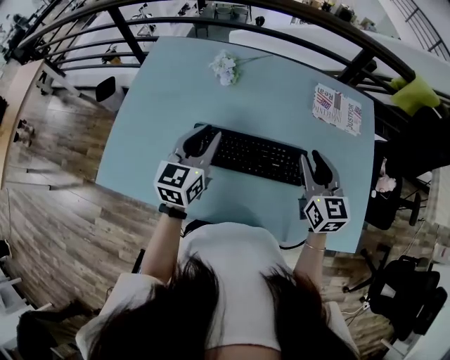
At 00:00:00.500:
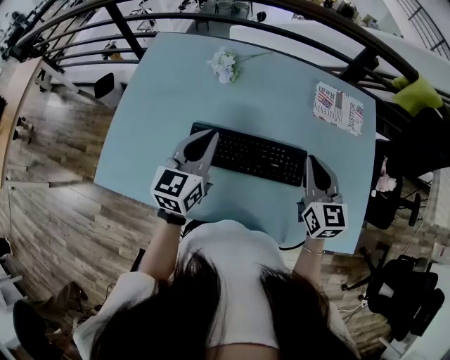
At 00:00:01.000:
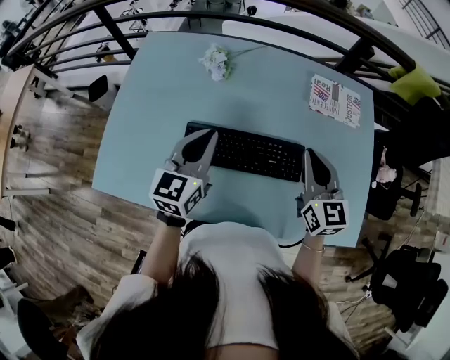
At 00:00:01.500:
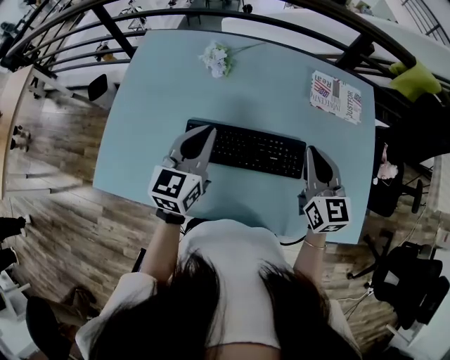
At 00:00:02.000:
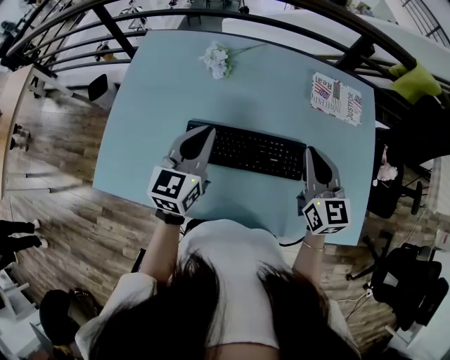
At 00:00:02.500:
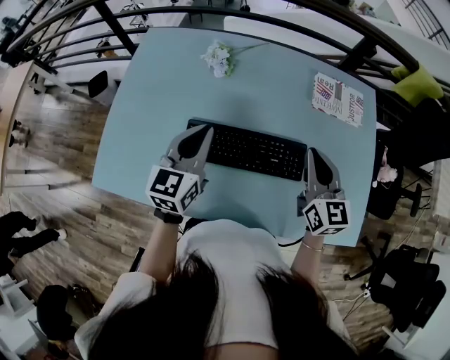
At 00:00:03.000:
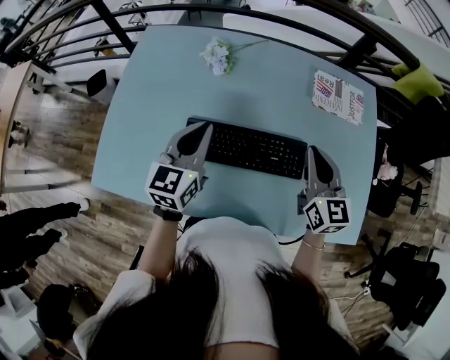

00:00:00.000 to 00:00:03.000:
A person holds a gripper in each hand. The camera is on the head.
00:00:00.000 to 00:00:01.500: The right gripper closes its fingers.
00:00:01.500 to 00:00:03.000: There are only small adjustments of the grippers.

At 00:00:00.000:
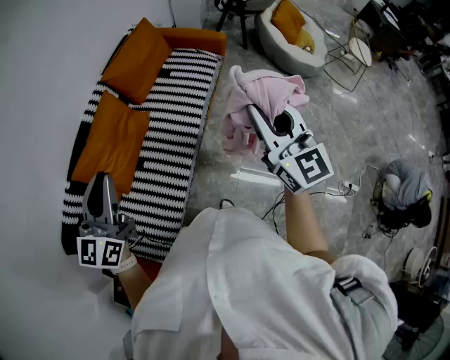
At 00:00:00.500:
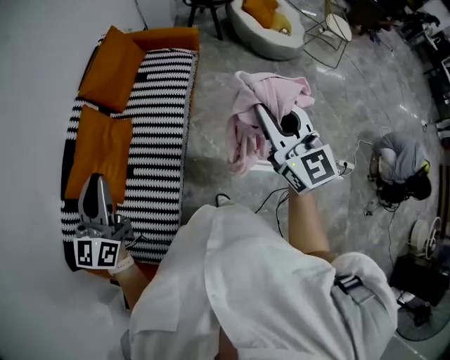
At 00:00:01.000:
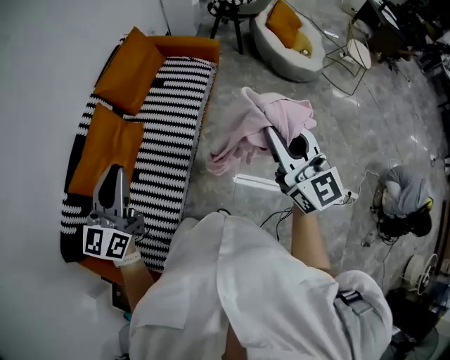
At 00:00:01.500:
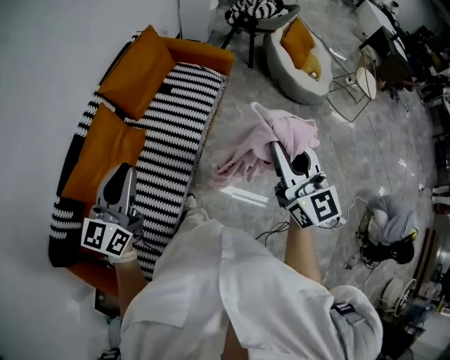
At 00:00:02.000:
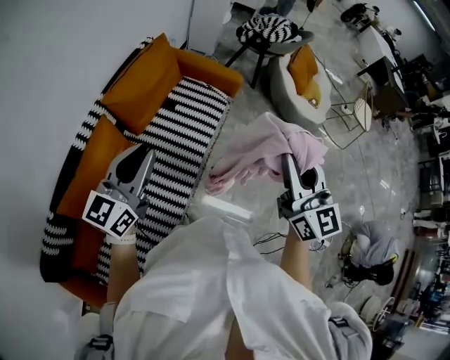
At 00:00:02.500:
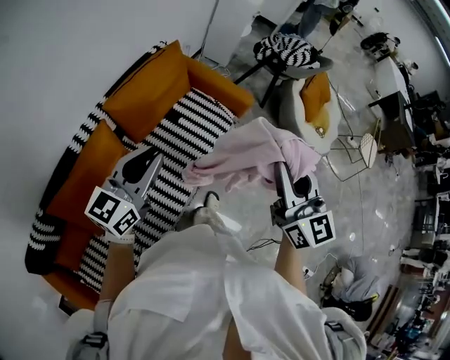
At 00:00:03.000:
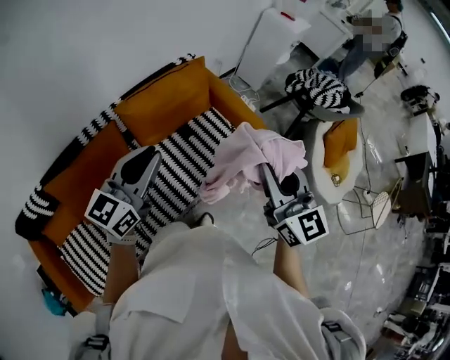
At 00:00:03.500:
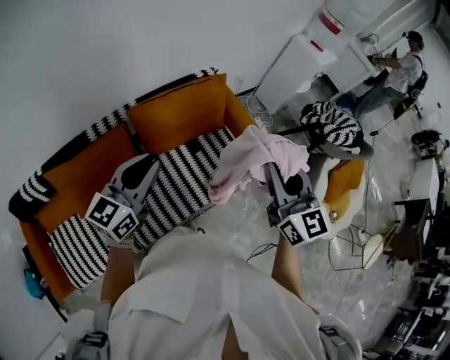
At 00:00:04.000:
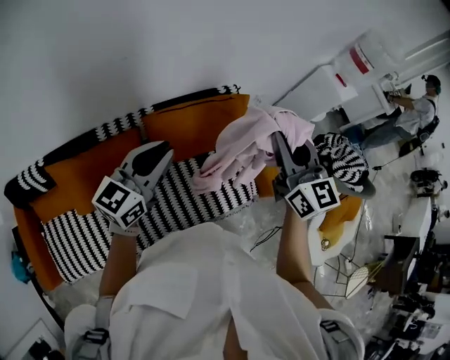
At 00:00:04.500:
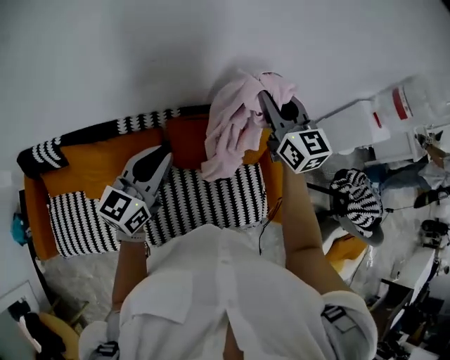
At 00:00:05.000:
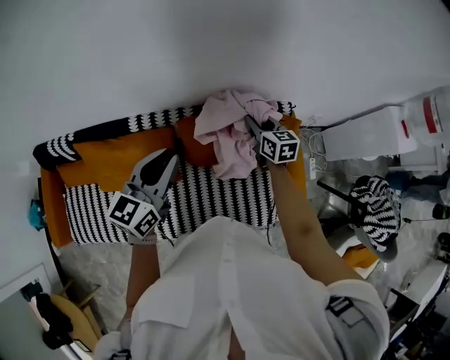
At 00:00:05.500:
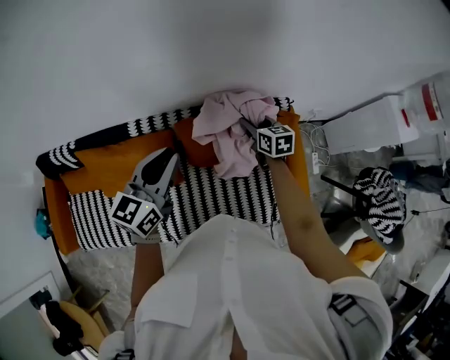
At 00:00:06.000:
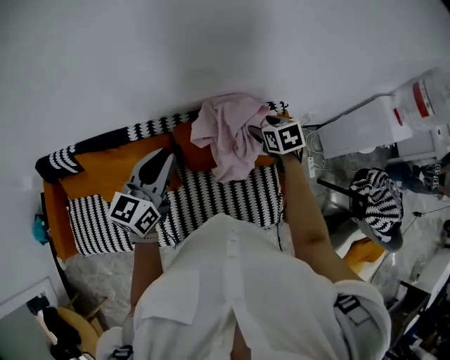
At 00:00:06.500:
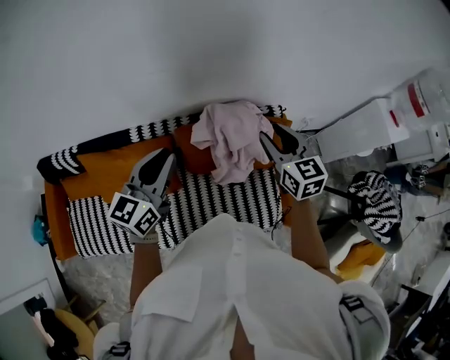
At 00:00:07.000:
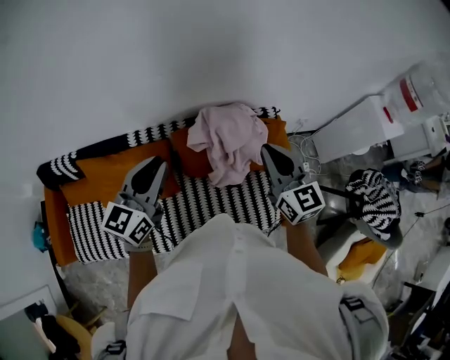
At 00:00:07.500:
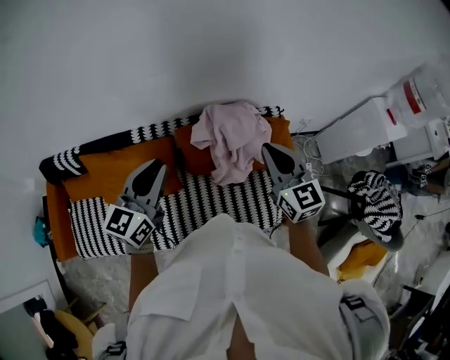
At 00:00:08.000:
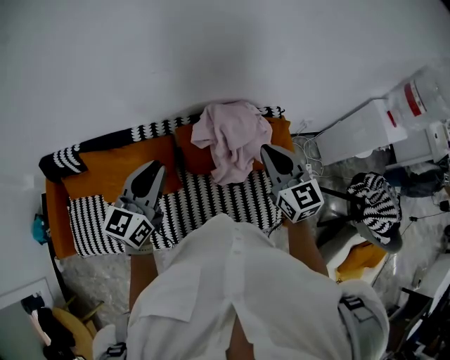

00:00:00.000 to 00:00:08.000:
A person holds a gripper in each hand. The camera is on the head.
00:00:00.000 to 00:00:02.000: Both grippers move forward, some 25 cm.
00:00:02.000 to 00:00:04.000: The right gripper ends up some 50 cm from where it was, and turns by about 50 degrees. The left gripper moves approximately 25 cm, and swivels roughly 30 degrees.
00:00:04.000 to 00:00:06.000: The right gripper is displaced downward and forward by some 35 cm, angles its fingers downward, by approximately 50 degrees, and opens its fingers. The left gripper shifts roughly 10 cm forward, and rotates about 30 degrees.
00:00:06.000 to 00:00:08.000: The left gripper moves backward, some 5 cm. The right gripper moves upward and backward, roughly 20 cm, tilts its fingers approximately 40 degrees upward, and closes up.

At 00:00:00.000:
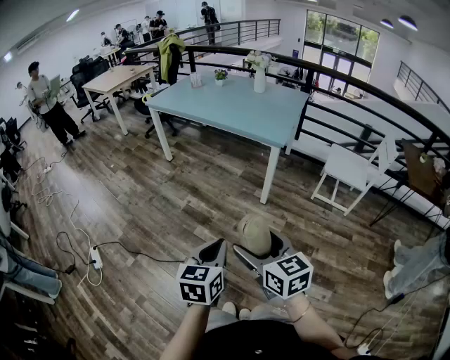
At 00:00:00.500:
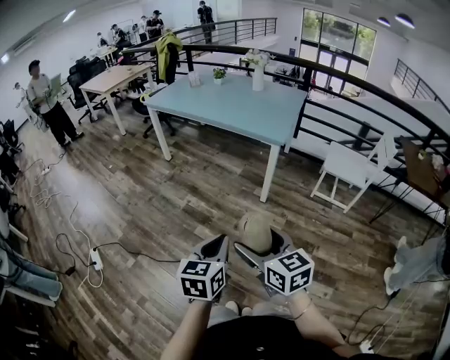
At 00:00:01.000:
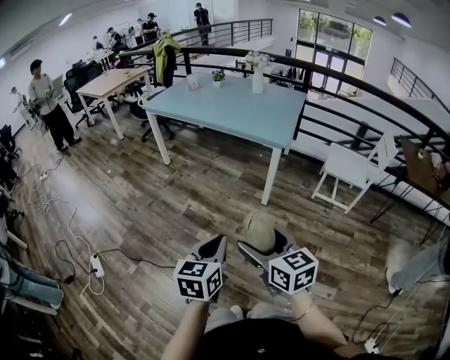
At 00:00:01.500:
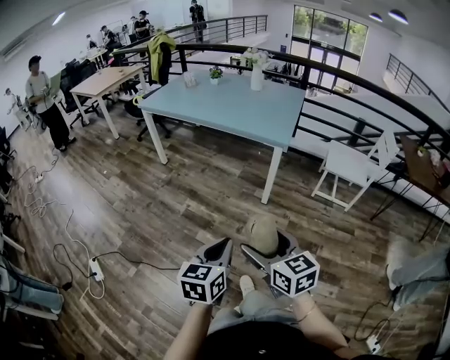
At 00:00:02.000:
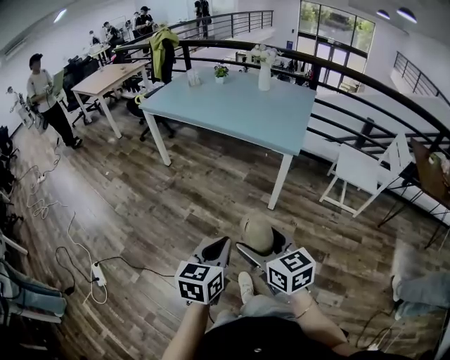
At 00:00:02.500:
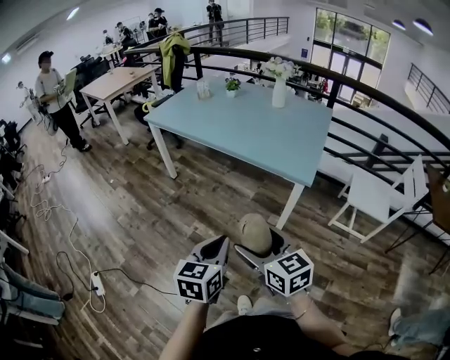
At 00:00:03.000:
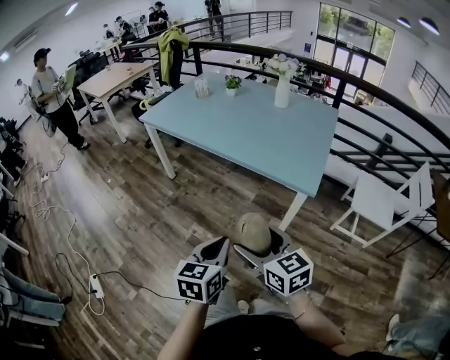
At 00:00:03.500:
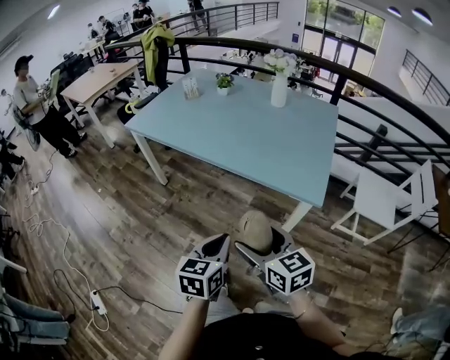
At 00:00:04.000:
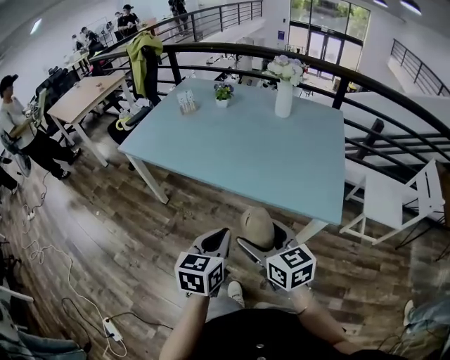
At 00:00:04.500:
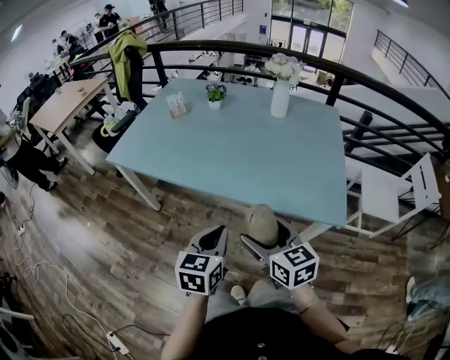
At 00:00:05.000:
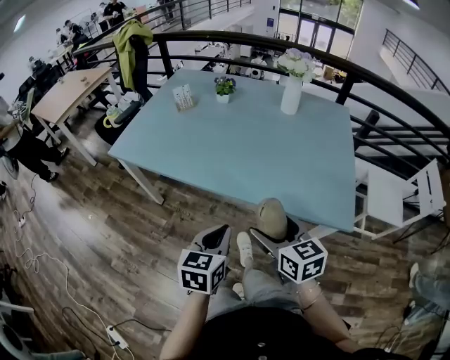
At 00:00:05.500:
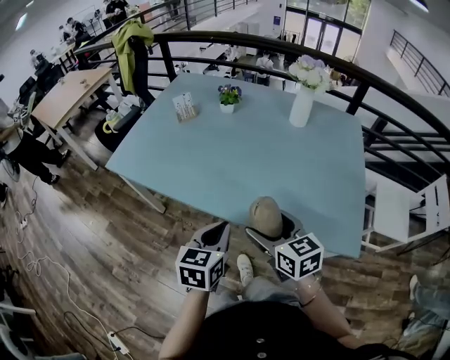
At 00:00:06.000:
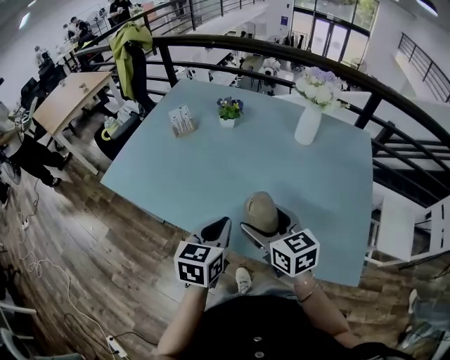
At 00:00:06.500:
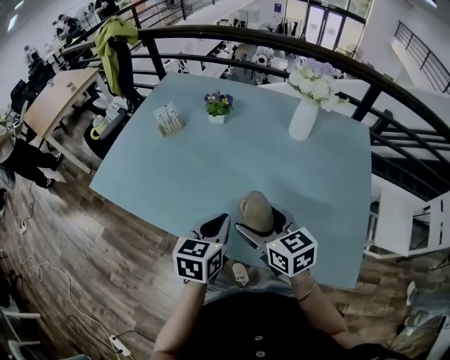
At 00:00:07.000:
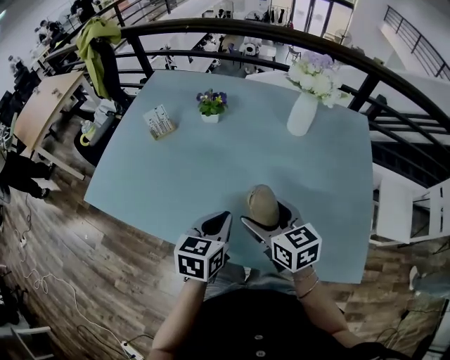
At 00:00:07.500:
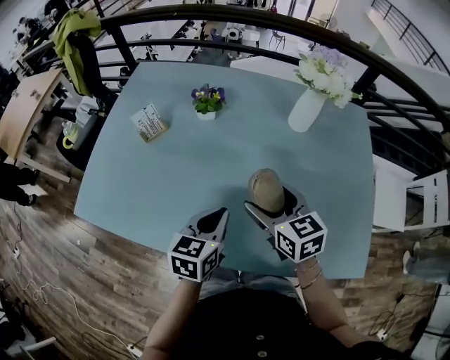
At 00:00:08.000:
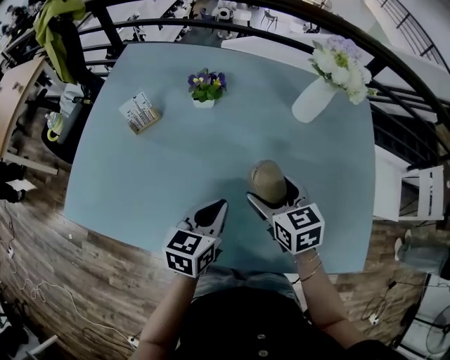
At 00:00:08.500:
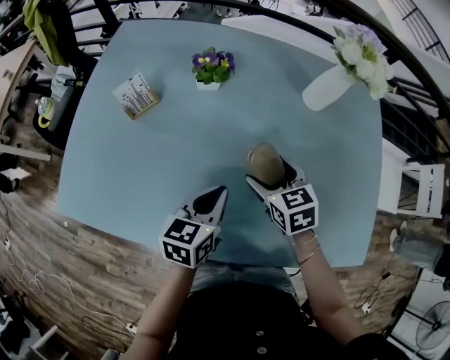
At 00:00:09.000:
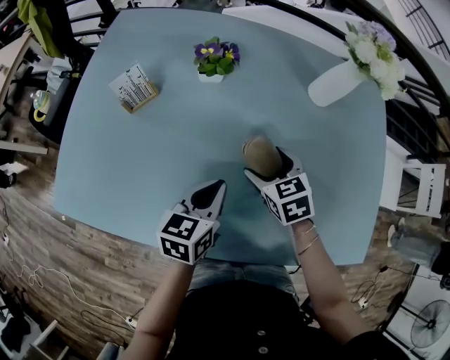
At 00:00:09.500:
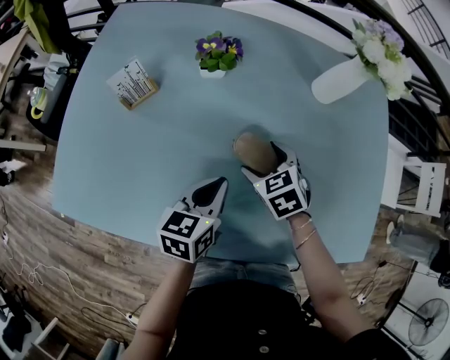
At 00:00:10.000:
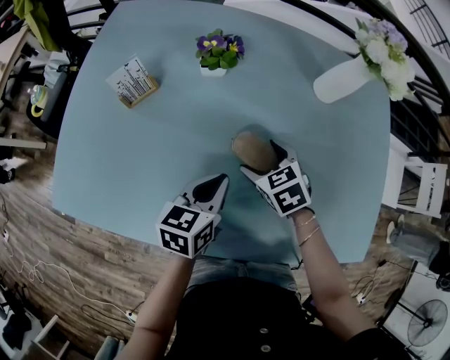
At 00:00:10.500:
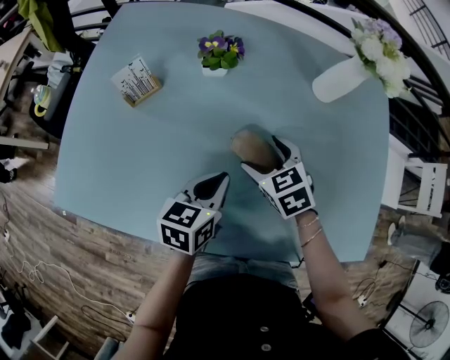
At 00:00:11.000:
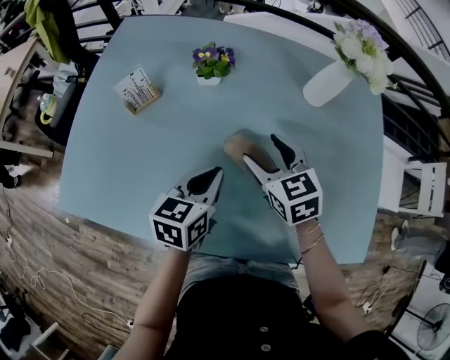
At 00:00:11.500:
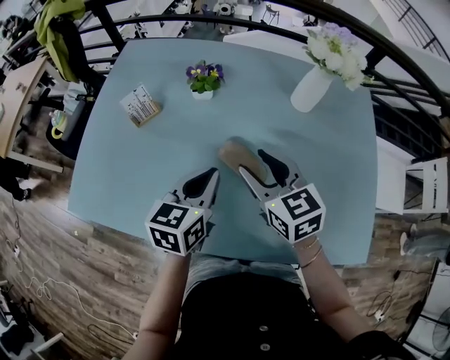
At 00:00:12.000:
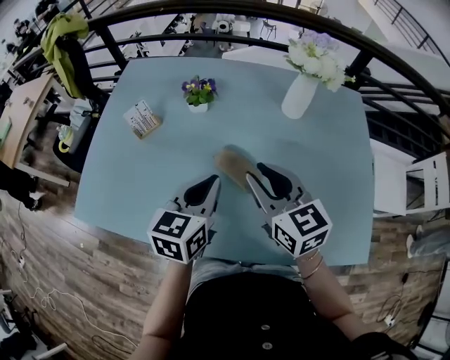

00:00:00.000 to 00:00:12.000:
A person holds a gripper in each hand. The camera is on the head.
00:00:00.000 to 00:00:02.000: The left gripper is displaced forward by approximately 15 cm. Meanwhile the right gripper heads forward and to the left, covering about 15 cm.
00:00:02.000 to 00:00:04.000: The two grippers travel together, forward, roughly 50 cm.
00:00:04.000 to 00:00:06.000: The two grippers go some 30 cm forward.
00:00:06.000 to 00:00:08.000: The left gripper moves forward and downward, roughly 15 cm; the right gripper travels forward by roughly 15 cm, and turns by roughly 20 degrees.
00:00:08.000 to 00:00:10.000: The left gripper moves approximately 5 cm. The right gripper shifts about 10 cm downward and to the left, and changes its angle by approximately 20 degrees.
00:00:10.000 to 00:00:12.000: The right gripper travels upward by some 20 cm, tips its fingers upward by roughly 40 degrees, and closes its fingers, while the left gripper travels upward by approximately 15 cm.

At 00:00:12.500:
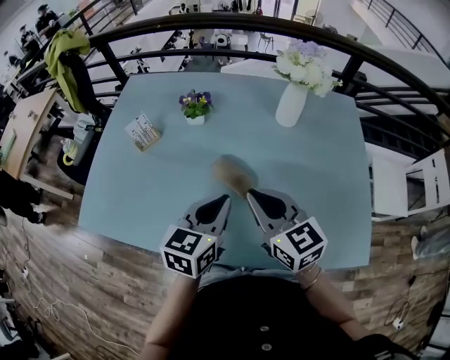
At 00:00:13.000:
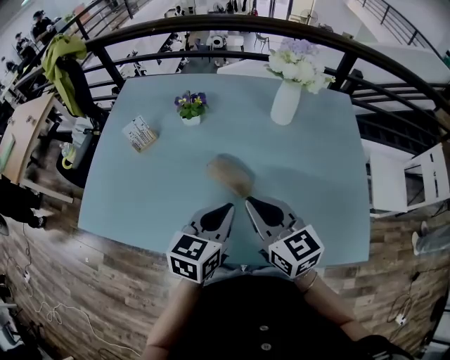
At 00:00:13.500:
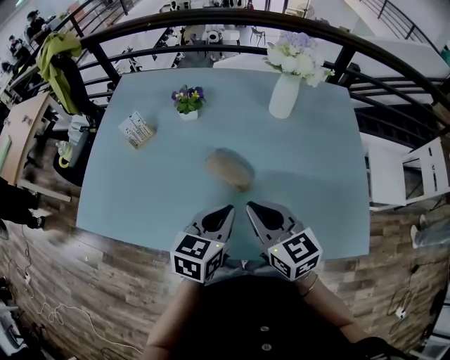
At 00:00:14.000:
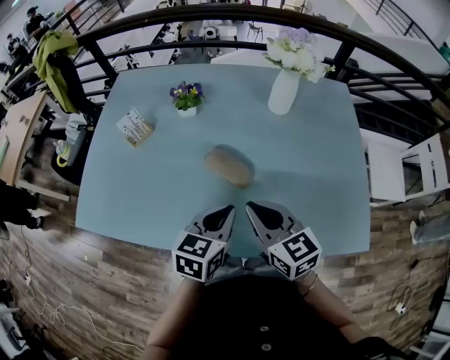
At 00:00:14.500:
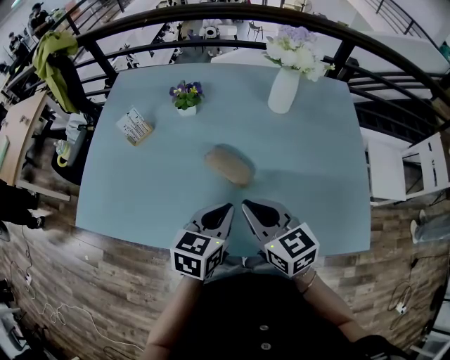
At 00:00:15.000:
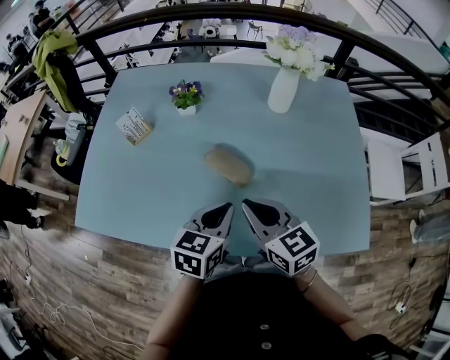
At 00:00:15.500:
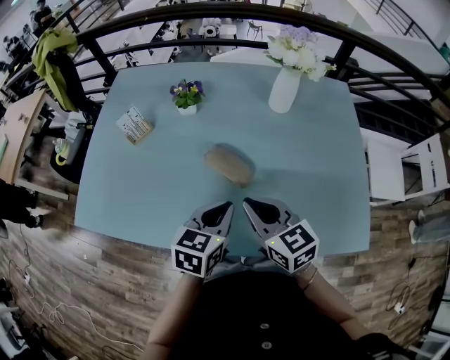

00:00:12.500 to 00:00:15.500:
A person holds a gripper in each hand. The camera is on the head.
00:00:12.500 to 00:00:14.000: The left gripper shifts by some 5 cm. The right gripper moves roughly 5 cm.
00:00:14.000 to 00:00:15.500: Neither gripper changes place.
